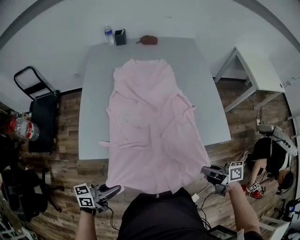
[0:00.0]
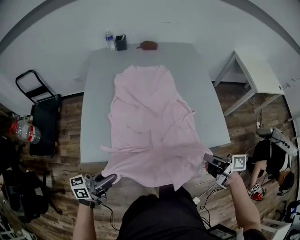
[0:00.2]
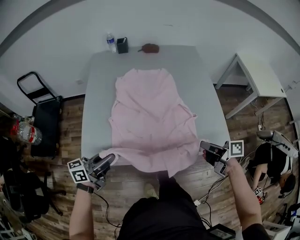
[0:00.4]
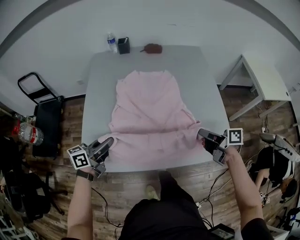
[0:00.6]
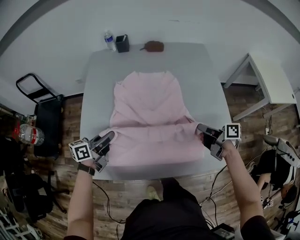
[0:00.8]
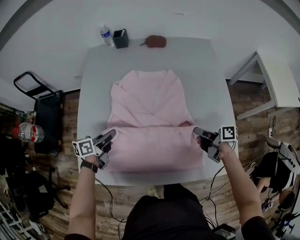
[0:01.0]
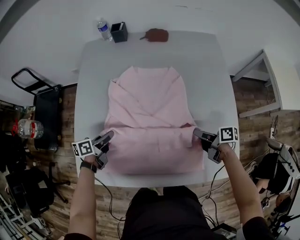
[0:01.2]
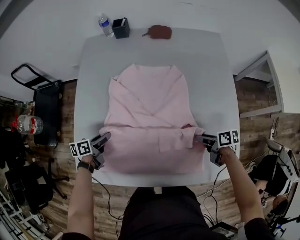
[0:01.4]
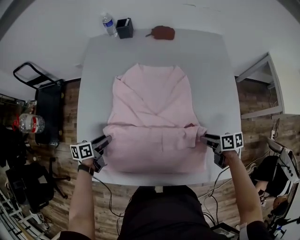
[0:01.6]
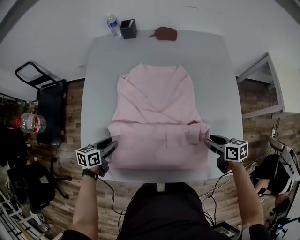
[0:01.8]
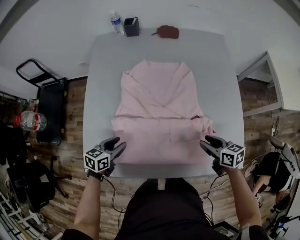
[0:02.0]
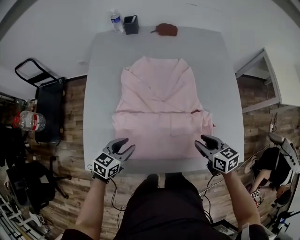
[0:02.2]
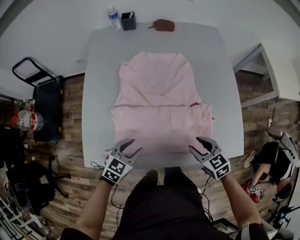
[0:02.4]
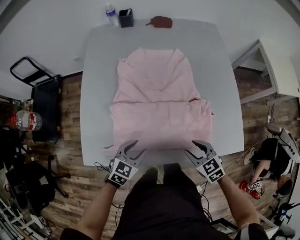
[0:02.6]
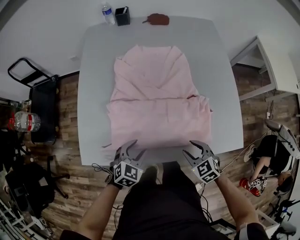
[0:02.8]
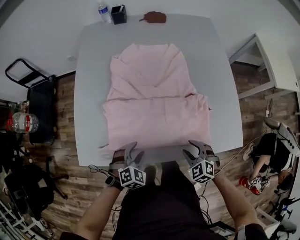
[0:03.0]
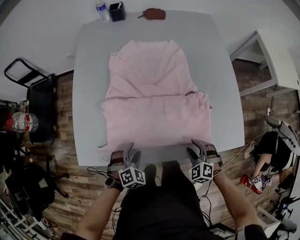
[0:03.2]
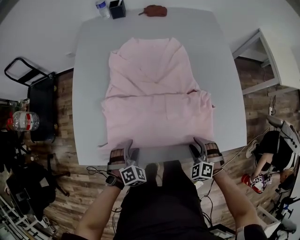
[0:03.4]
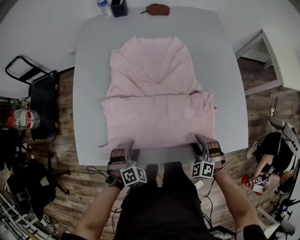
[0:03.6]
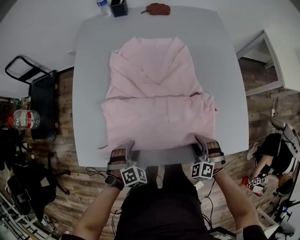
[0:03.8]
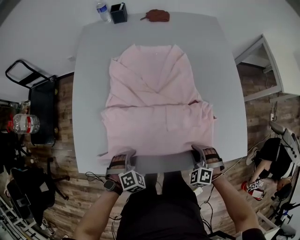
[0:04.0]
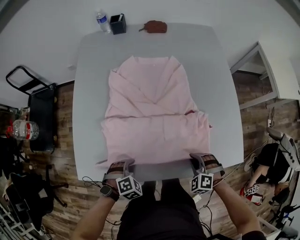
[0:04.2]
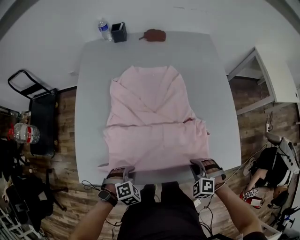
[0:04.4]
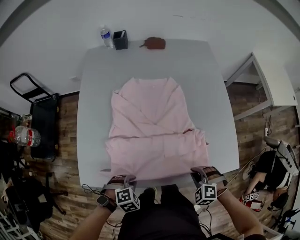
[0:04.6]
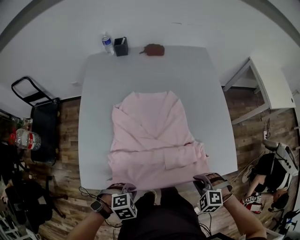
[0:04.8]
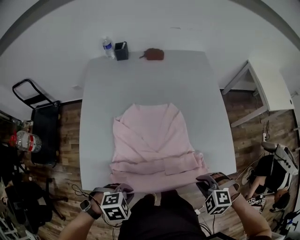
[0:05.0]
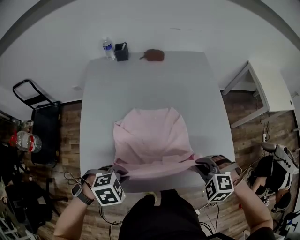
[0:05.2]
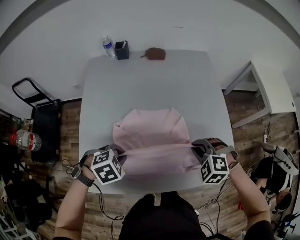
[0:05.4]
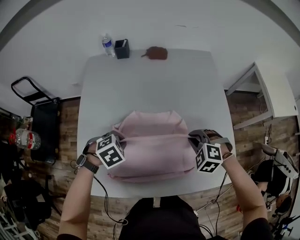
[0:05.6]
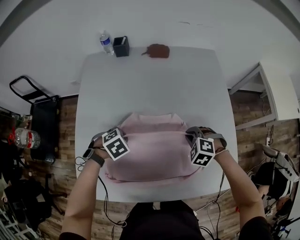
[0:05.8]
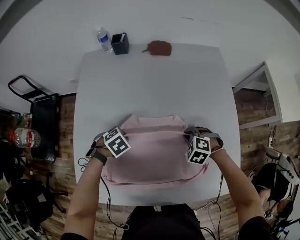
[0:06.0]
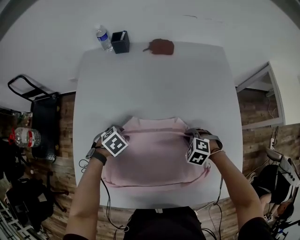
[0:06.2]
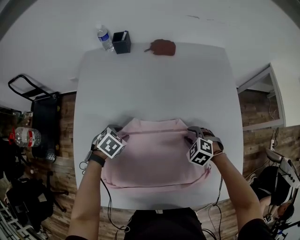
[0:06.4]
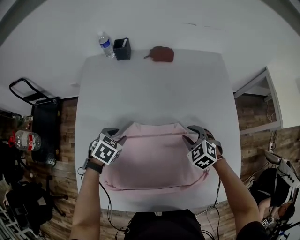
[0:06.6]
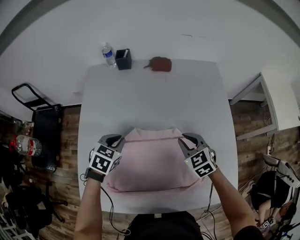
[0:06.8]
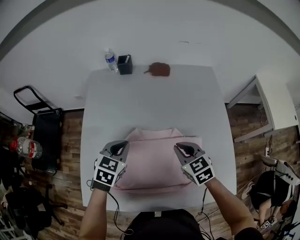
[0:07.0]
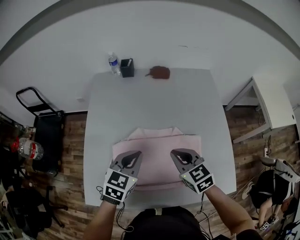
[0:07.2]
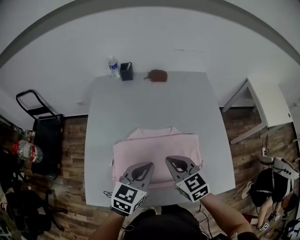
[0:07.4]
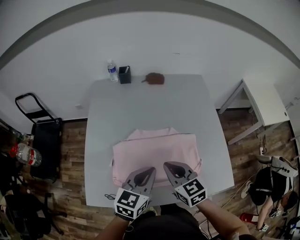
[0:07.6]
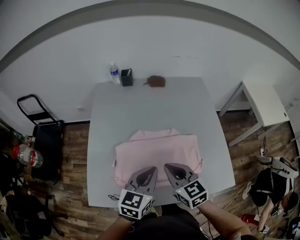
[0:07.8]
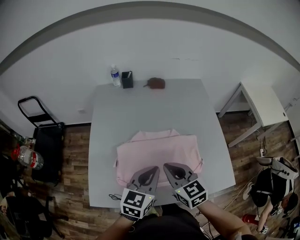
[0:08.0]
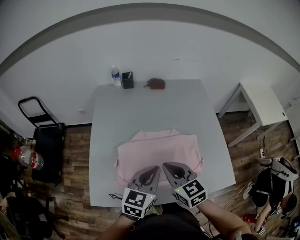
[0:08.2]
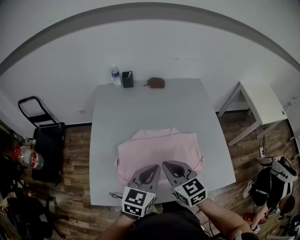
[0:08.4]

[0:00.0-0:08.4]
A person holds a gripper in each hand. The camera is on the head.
0.0 to 1.4 s: The two grippers go approximately 40 cm forward. The right gripper rotates approximately 20 degrees, and opens. The left gripper changes its angle by roughly 40 degrees, and opens.
1.4 to 2.8 s: The left gripper heads backward and to the right, covering about 20 cm, and rotates around the line of its fingers by about 70 degrees, clockwise from behind. Meanwhile the right gripper is displaced backward and to the left by about 20 cm, and rolls counterclockwise, seen from behind, by some 60 degrees.
2.8 to 4.2 s: The grippers both shift downward by about 5 cm. The right gripper changes its angle by about 40 degrees, and closes its fingers. The left gripper turns by about 30 degrees, and closes up.
4.2 to 5.6 s: The right gripper changes place by roughly 25 cm. The left gripper ends up about 20 cm from where it was.
5.6 to 7.0 s: The left gripper angles its fingers upward, by approximately 30 degrees, and opens, then closes again. The right gripper goes downward and returns, approximately 15 cm each way, twists approximately 40 degrees clockwise, seen from behind, and opens, then closes again.
7.0 to 8.4 s: The right gripper goes roughly 20 cm backward, upward and to the left; the left gripper moves backward, upward and to the right, roughly 20 cm, and rotates about 20 degrees.

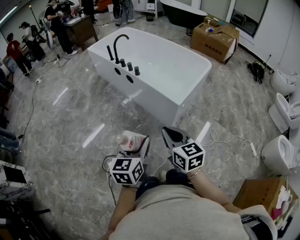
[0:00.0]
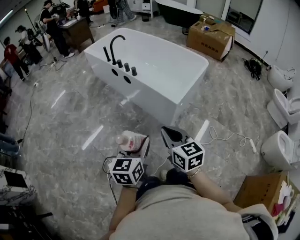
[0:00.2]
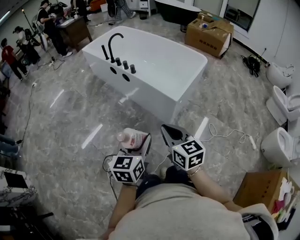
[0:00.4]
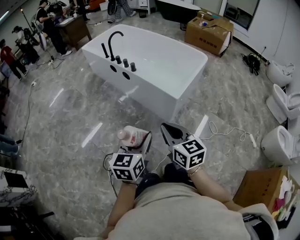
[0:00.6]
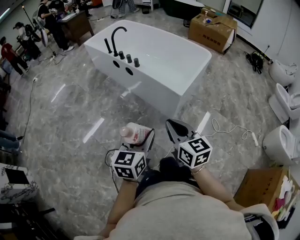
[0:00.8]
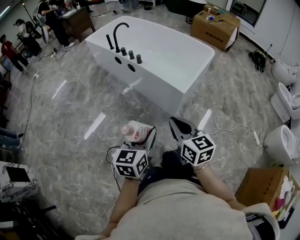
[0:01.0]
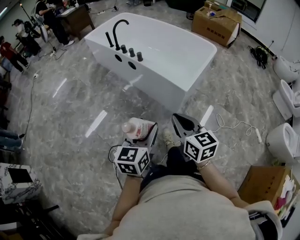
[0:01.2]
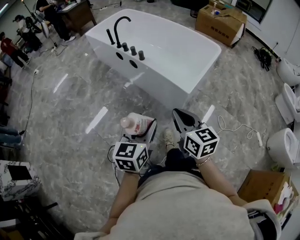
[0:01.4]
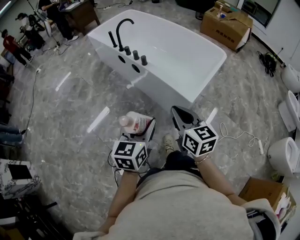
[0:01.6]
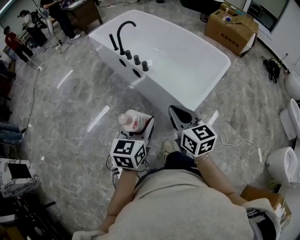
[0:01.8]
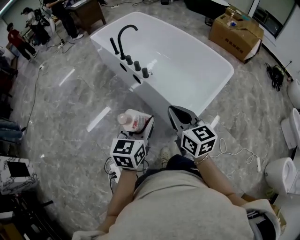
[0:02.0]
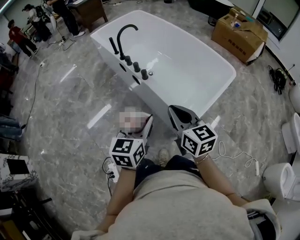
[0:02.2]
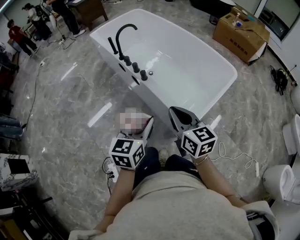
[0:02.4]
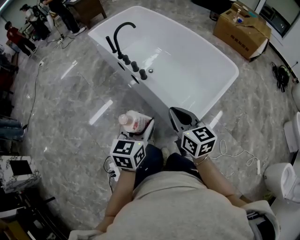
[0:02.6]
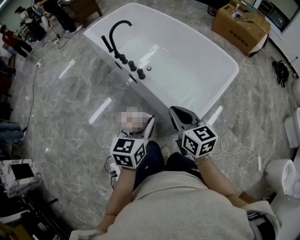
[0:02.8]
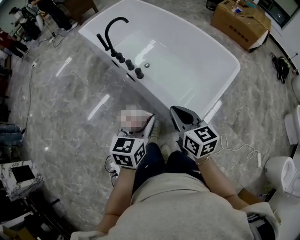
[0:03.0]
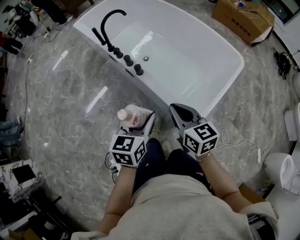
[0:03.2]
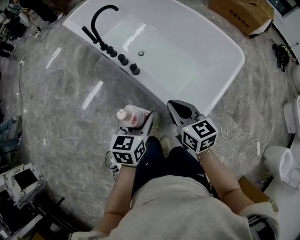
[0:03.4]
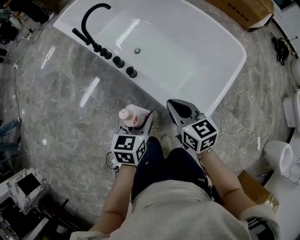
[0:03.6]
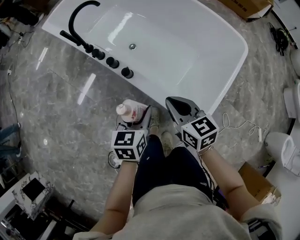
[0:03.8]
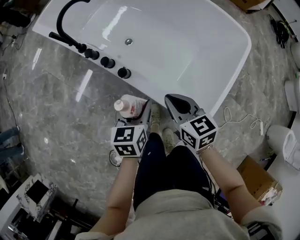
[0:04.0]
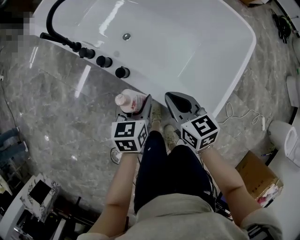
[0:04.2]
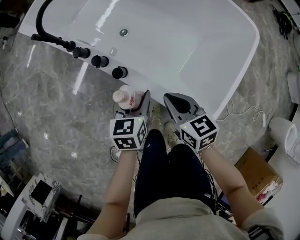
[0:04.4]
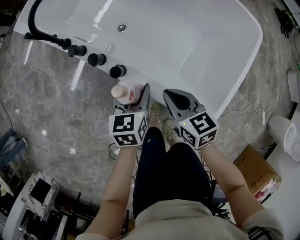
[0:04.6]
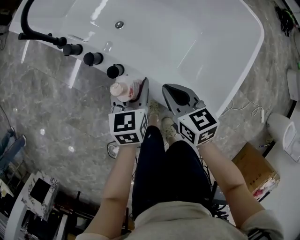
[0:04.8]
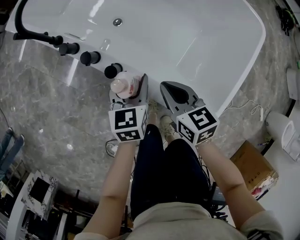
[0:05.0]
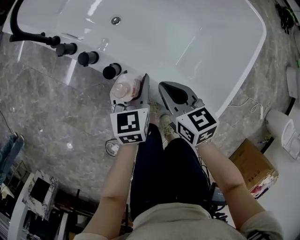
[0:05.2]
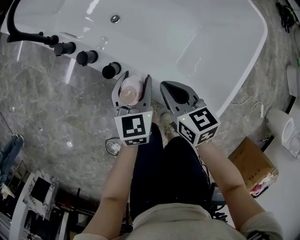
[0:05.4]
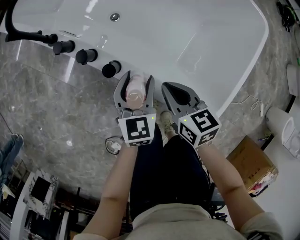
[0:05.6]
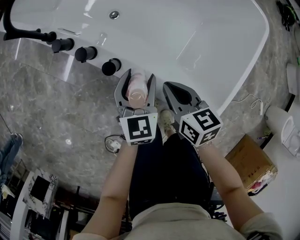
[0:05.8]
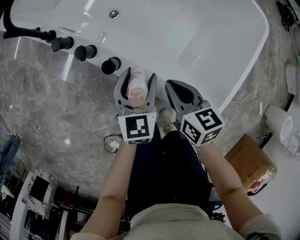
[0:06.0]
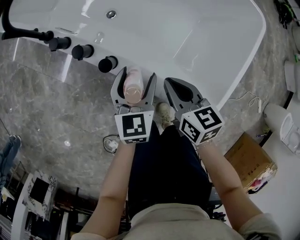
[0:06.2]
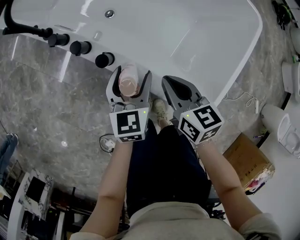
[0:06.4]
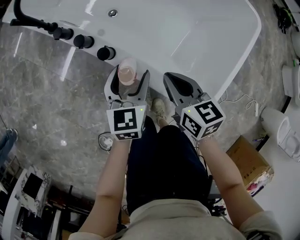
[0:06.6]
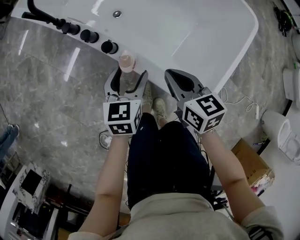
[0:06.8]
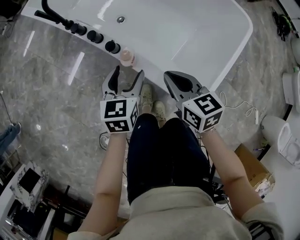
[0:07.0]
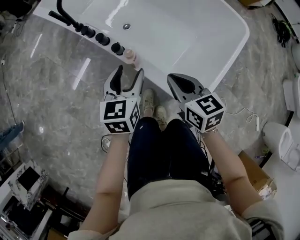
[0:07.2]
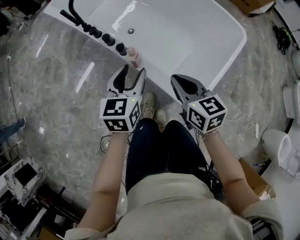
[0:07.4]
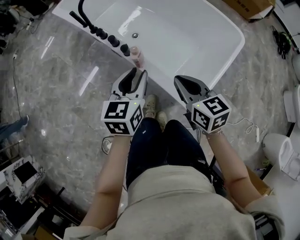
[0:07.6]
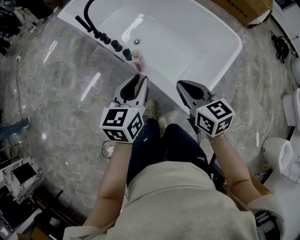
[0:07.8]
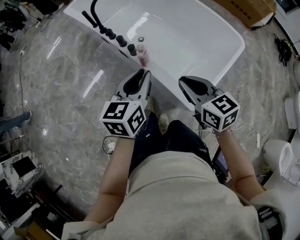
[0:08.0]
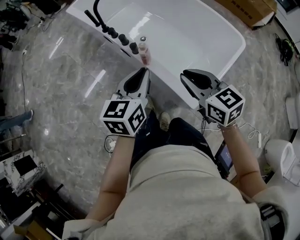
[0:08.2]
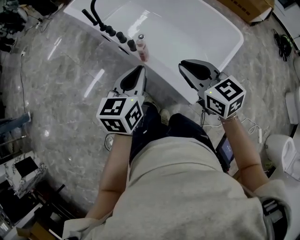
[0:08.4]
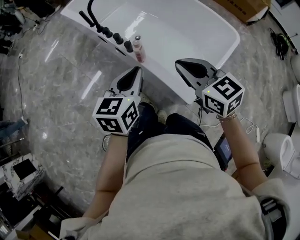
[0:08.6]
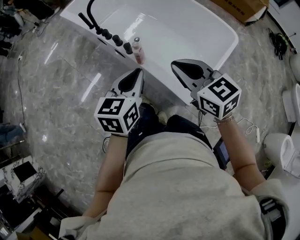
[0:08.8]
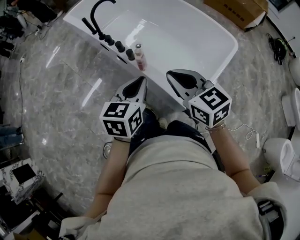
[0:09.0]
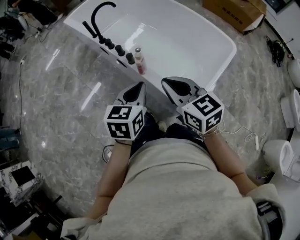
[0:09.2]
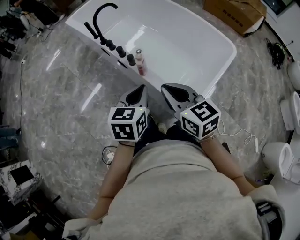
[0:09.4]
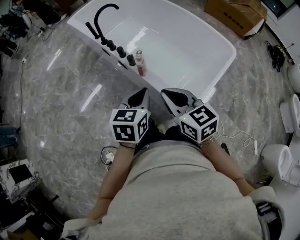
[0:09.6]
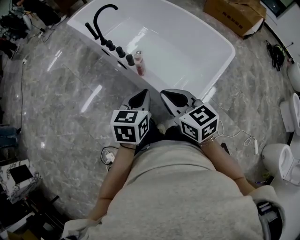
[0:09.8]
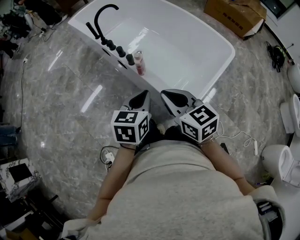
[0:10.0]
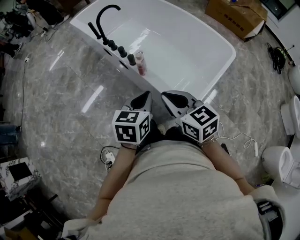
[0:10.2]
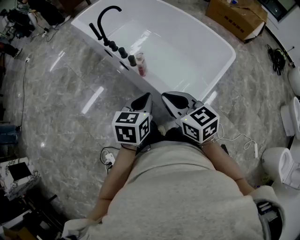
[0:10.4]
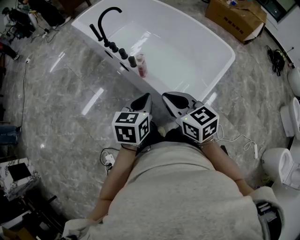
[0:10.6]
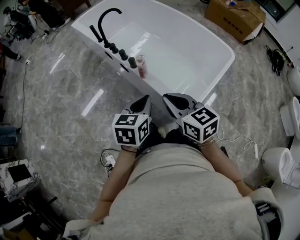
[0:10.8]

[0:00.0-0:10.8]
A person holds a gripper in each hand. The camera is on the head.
0.0 to 1.6 s: Both grippers travel together forward, approximately 15 cm.
1.6 to 3.0 s: Both grippers travel together forward, approximately 25 cm.
3.0 to 4.6 s: The right gripper heads downward and forward, covering roughly 35 cm, while the left gripper moves forward and downward, approximately 40 cm.
4.6 to 6.2 s: There are only small adjustments of the grippers.
6.2 to 7.8 s: Both grippers move upward and backward, some 30 cm. The right gripper swivels about 20 degrees; the left gripper closes its fingers.
7.8 to 9.2 s: The right gripper moves upward and to the left, roughly 10 cm.
9.2 to 10.8 s: Both grippers travel together backward, roughly 5 cm.

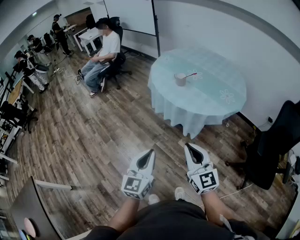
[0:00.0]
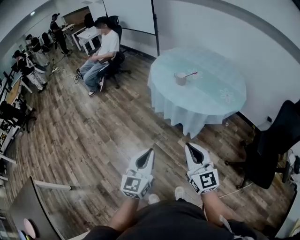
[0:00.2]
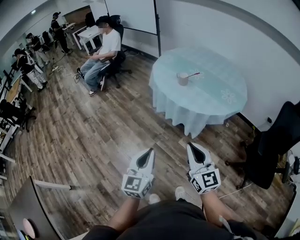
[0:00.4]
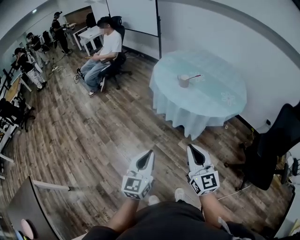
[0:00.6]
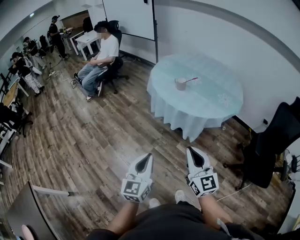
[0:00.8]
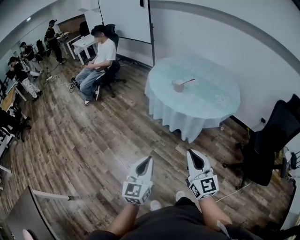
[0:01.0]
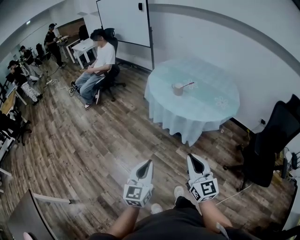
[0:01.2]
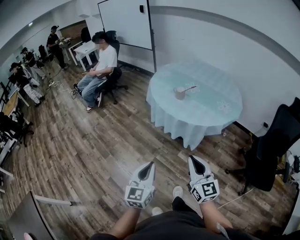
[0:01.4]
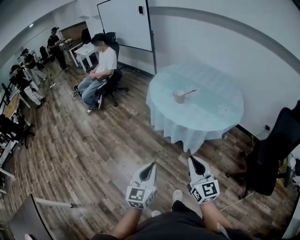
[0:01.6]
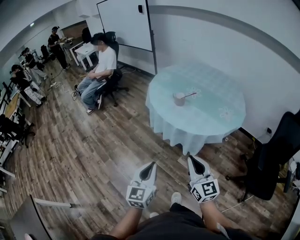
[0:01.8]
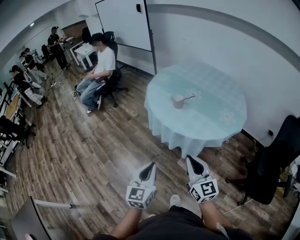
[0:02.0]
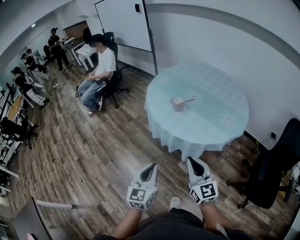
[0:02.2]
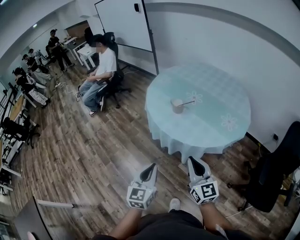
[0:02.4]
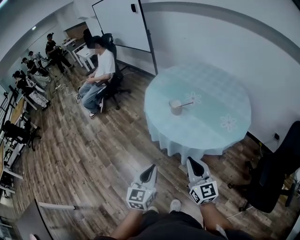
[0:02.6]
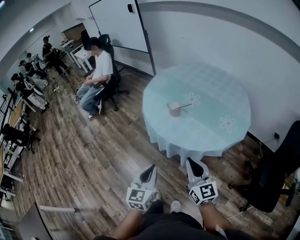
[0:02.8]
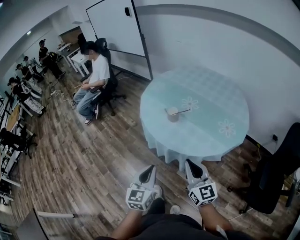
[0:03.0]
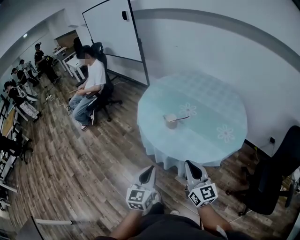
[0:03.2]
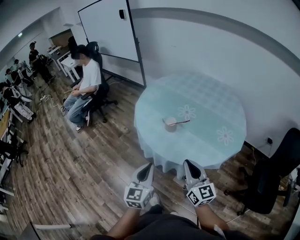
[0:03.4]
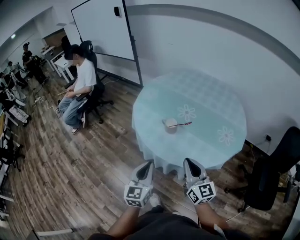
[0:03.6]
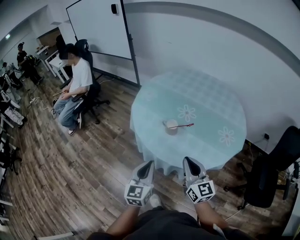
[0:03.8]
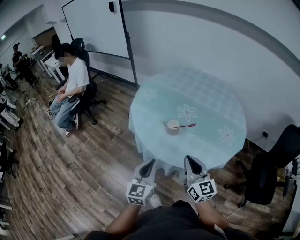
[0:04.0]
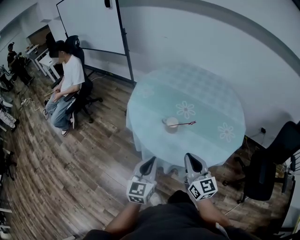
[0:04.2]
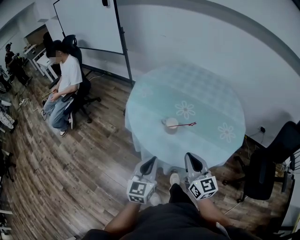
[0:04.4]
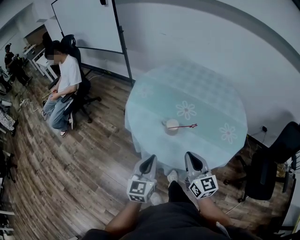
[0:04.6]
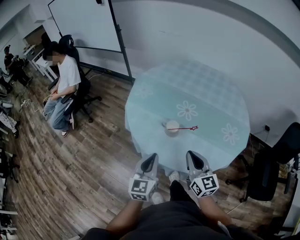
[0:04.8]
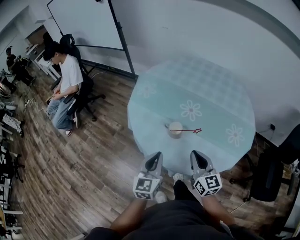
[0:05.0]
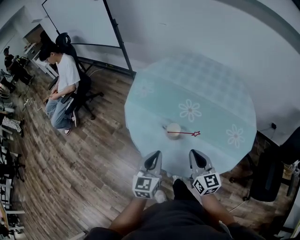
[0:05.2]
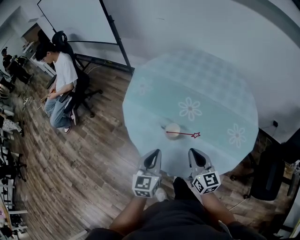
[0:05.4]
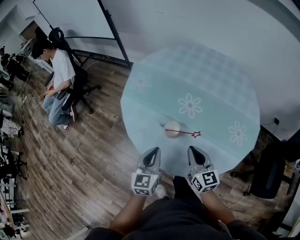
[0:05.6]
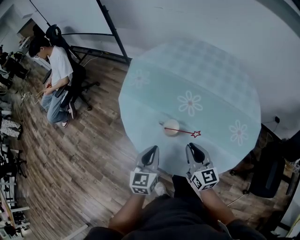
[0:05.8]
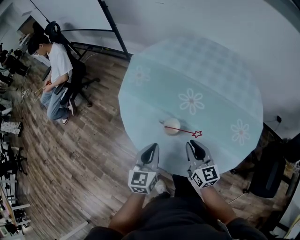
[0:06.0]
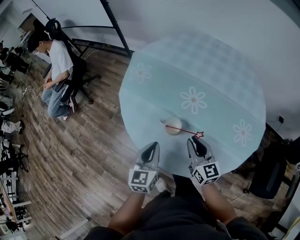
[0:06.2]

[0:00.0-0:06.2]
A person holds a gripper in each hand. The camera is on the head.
0.0 to 1.6 s: The left gripper ends up approximately 5 cm from where it was.
1.6 to 3.2 s: The left gripper moves forward and to the right, approximately 30 cm, while the right gripper is displaced forward by some 25 cm.
3.2 to 4.6 s: The two grippers go roughly 20 cm forward and to the left.
4.6 to 6.2 s: The grippers both shift forward and downward by roughly 20 cm.
